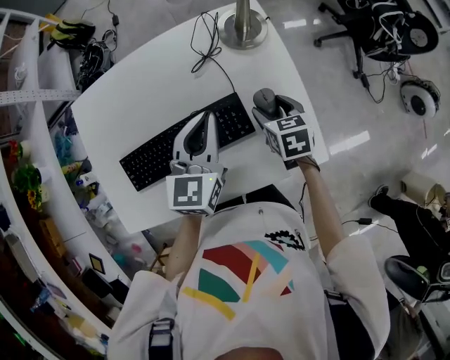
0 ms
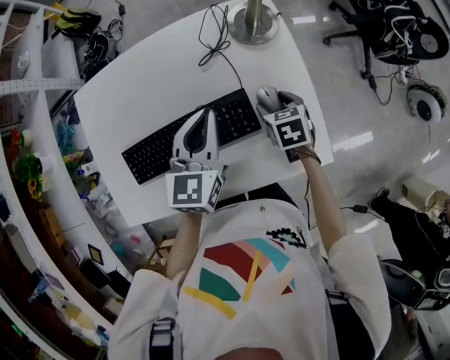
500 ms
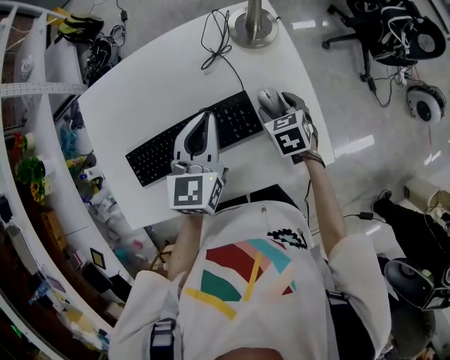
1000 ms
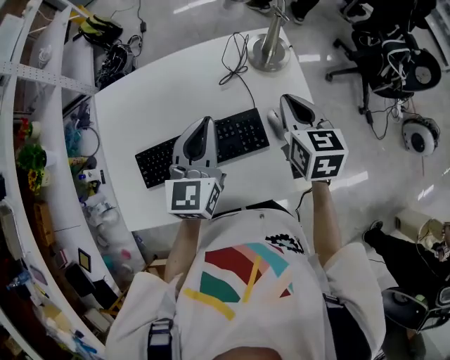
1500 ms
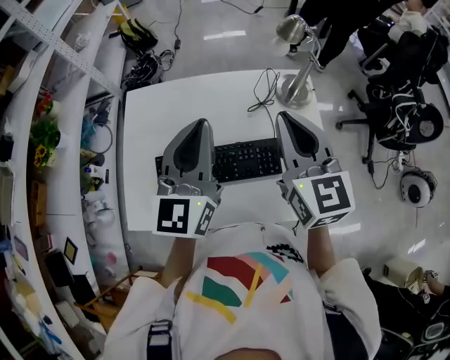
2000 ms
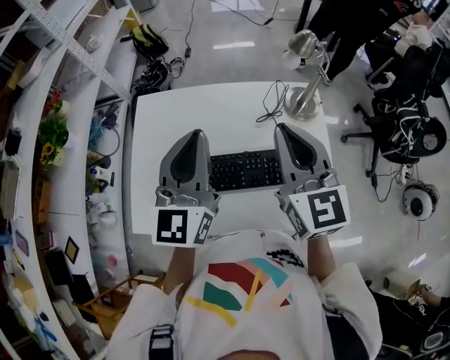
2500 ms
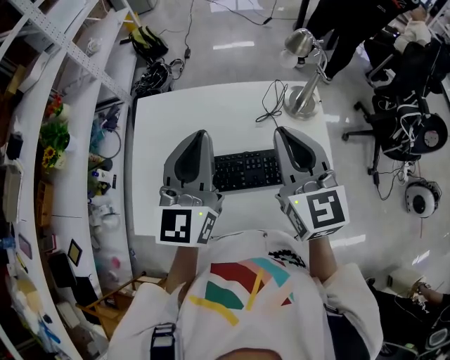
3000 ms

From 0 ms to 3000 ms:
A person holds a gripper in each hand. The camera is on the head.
From 0 ms to 1500 ms: The left gripper shifts approximately 5 cm to the left; the right gripper heads upward, covering about 15 cm, turns by roughly 20 degrees, and closes up.
From 1500 ms to 3000 ms: Both grippers travel together upward and to the left, about 20 cm. The right gripper changes its angle by approximately 30 degrees.

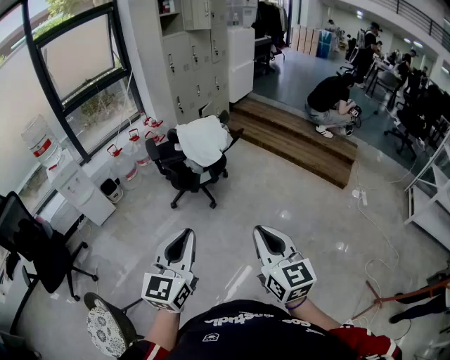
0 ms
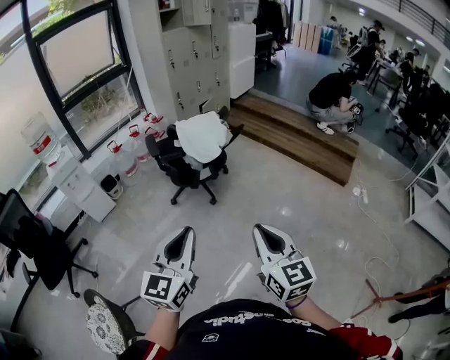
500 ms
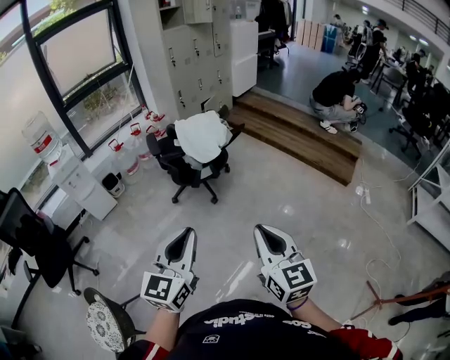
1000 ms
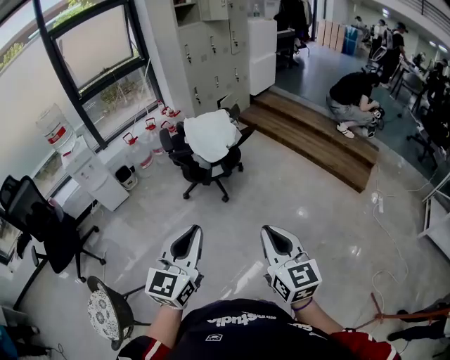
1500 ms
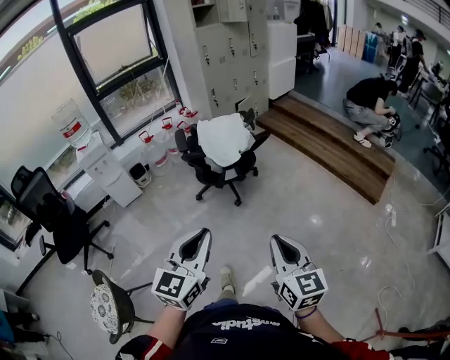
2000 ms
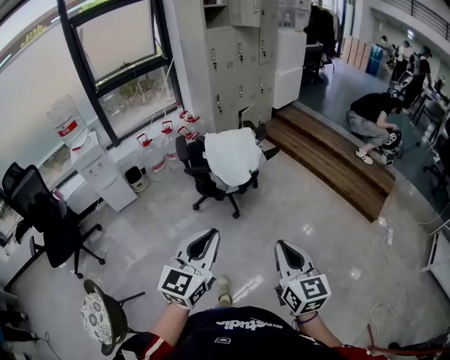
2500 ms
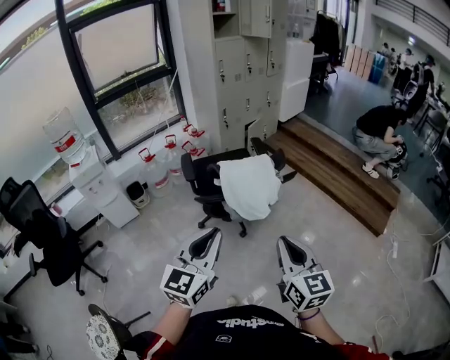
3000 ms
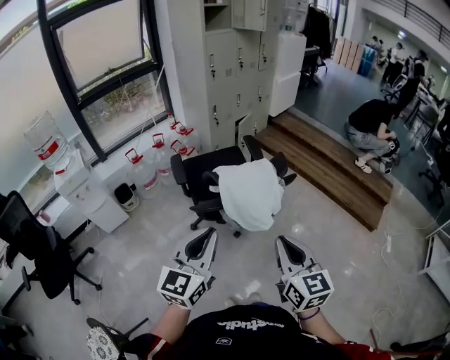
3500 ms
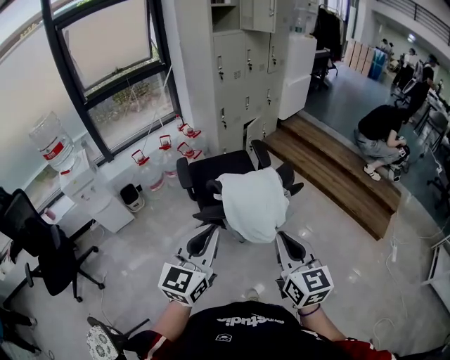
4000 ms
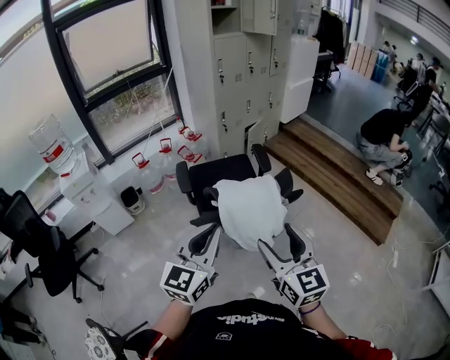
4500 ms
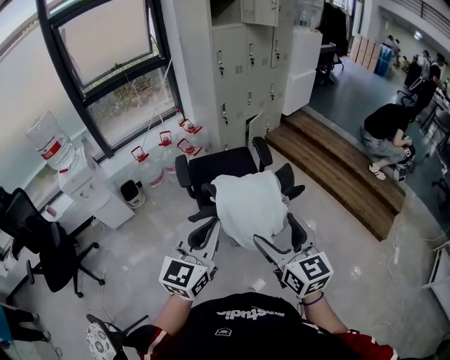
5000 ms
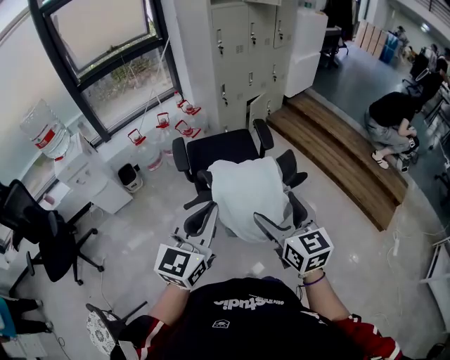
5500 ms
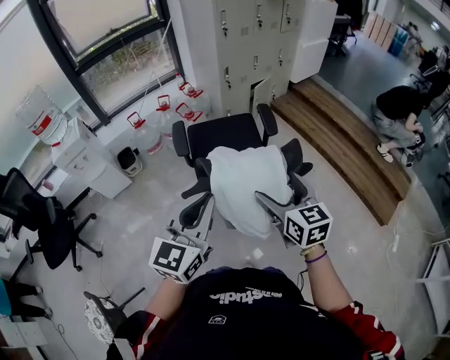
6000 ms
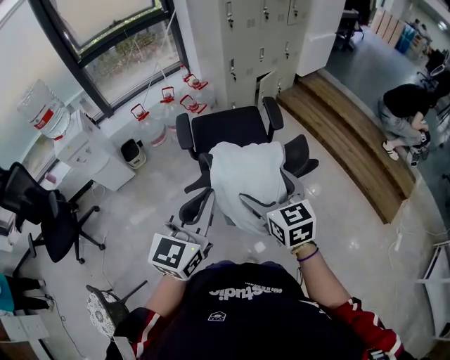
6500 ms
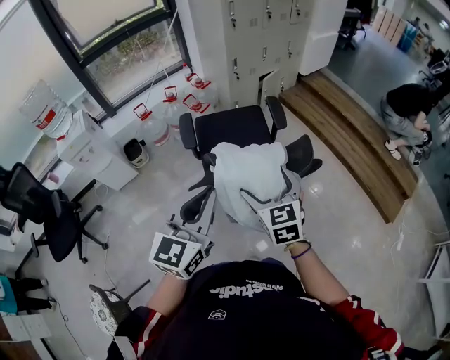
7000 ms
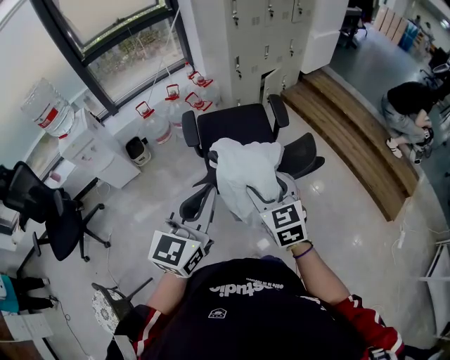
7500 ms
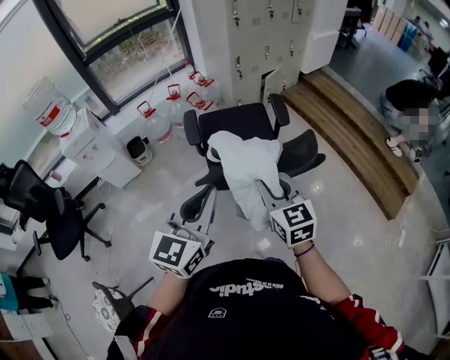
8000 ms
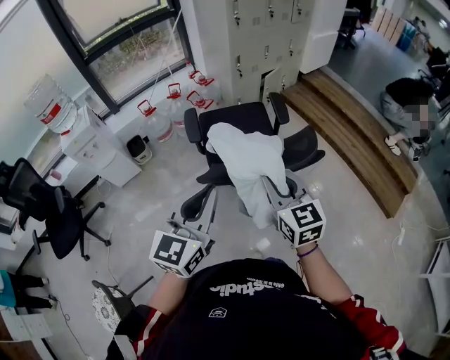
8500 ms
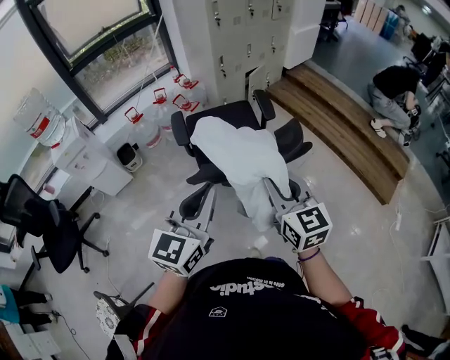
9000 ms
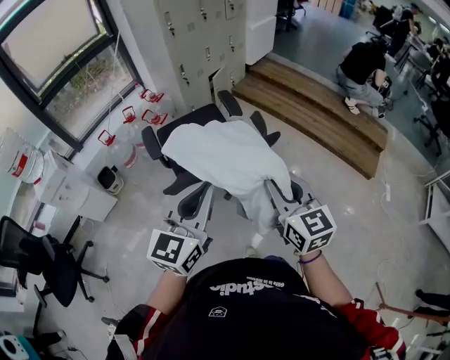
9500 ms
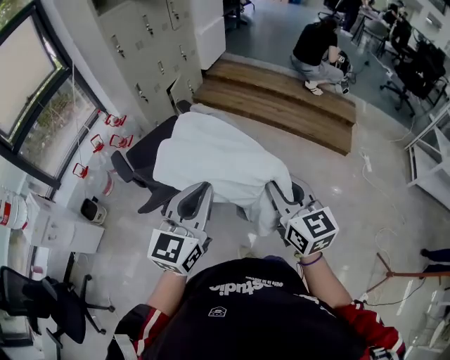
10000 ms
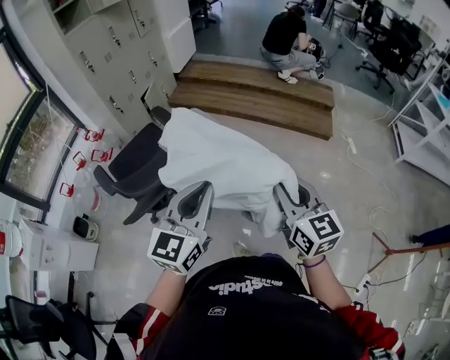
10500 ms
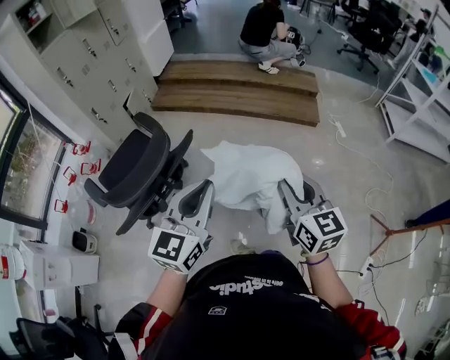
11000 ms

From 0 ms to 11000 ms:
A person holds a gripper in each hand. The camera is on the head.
From 0 ms to 2000 ms: The left gripper is displaced to the right by about 10 cm, while the right gripper shifts some 10 cm to the right and forward.
From 2000 ms to 3500 ms: The grippers both shift forward and to the left by roughly 35 cm.
From 3500 ms to 5500 ms: Both grippers move forward, some 15 cm. The right gripper opens its fingers.
From 5500 ms to 7500 ms: The right gripper shifts approximately 10 cm to the left, forward and downward.
From 7500 ms to 9000 ms: The right gripper shifts roughly 10 cm backward and upward, and closes.
From 9000 ms to 11000 ms: The right gripper ends up approximately 35 cm from where it was, and rotates about 40 degrees. The left gripper shifts by roughly 30 cm, and rotates some 40 degrees.

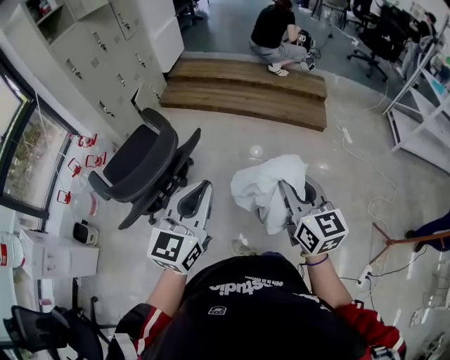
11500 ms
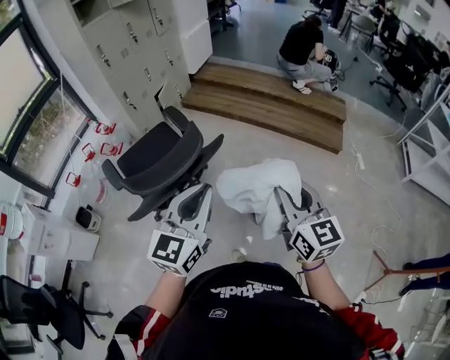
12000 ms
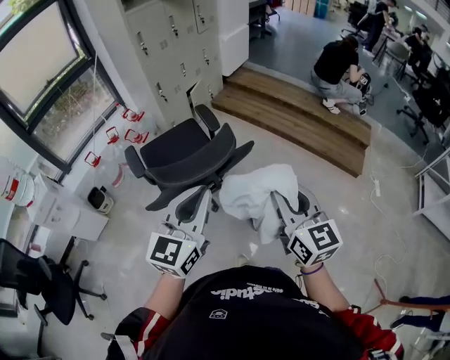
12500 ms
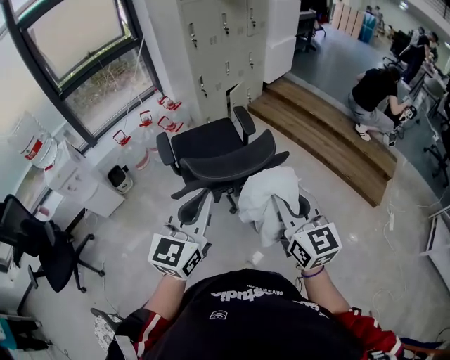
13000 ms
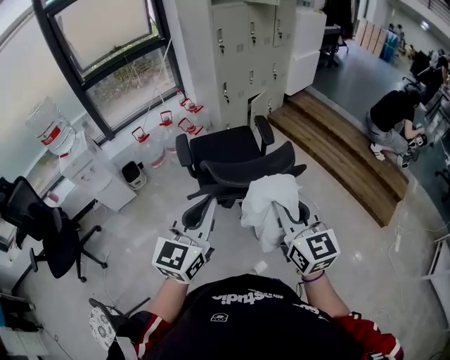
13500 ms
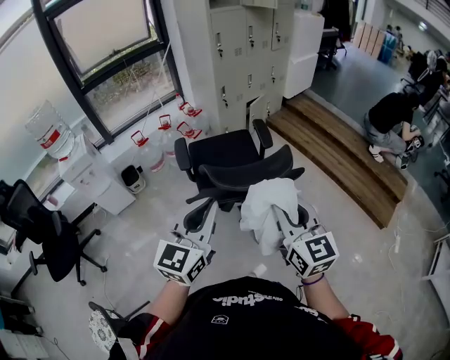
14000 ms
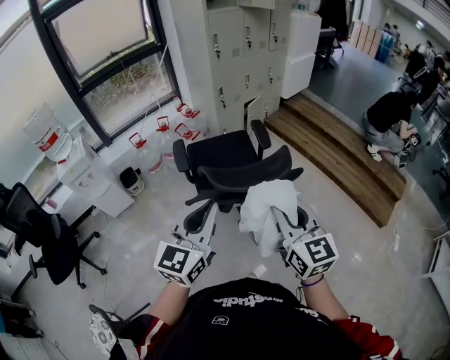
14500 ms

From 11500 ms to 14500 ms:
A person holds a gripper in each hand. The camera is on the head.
From 11500 ms to 13000 ms: The left gripper ends up roughly 20 cm from where it was, and swivels roughly 30 degrees, while the right gripper shifts by roughly 25 cm, and rotates some 30 degrees.
From 13000 ms to 14500 ms: There are only small adjustments of the grippers.

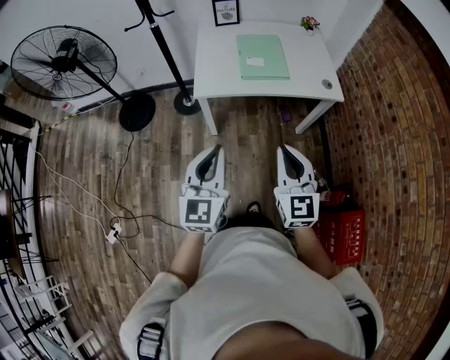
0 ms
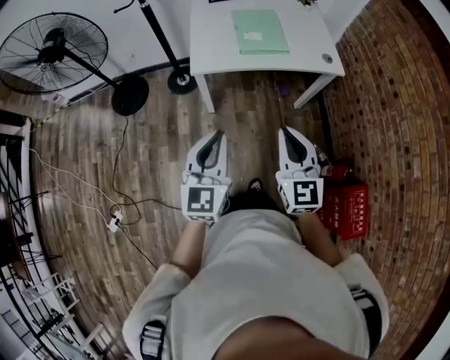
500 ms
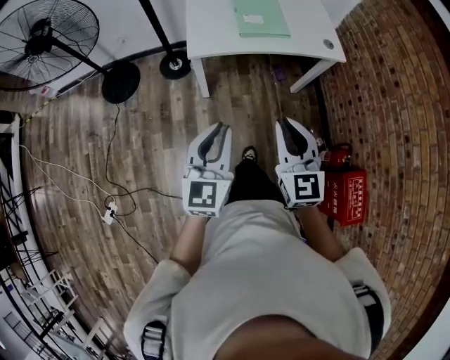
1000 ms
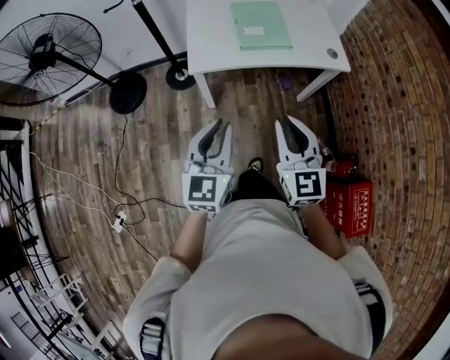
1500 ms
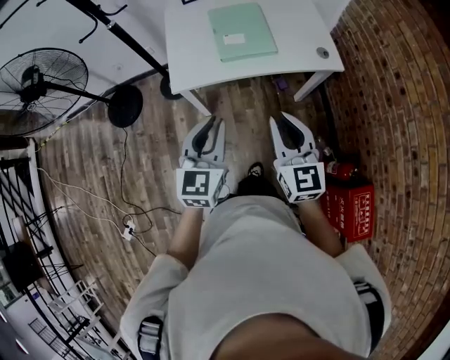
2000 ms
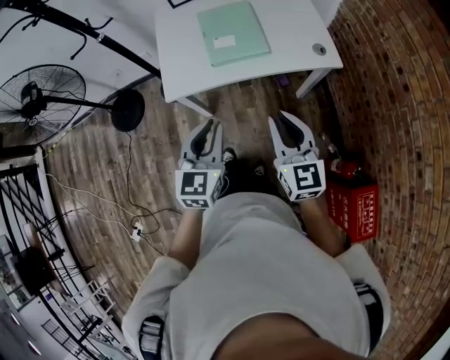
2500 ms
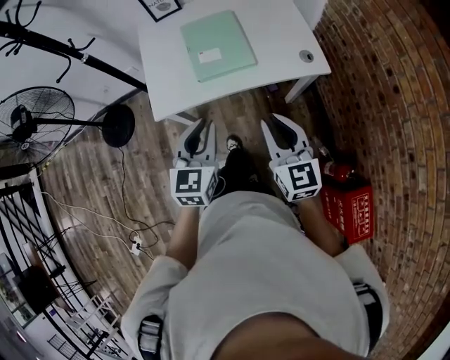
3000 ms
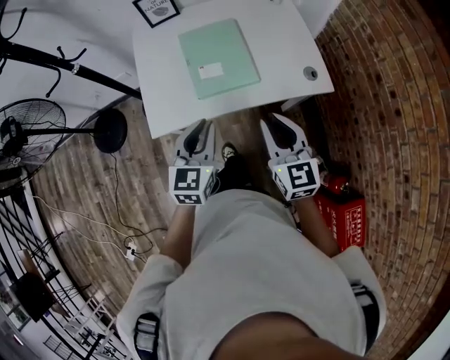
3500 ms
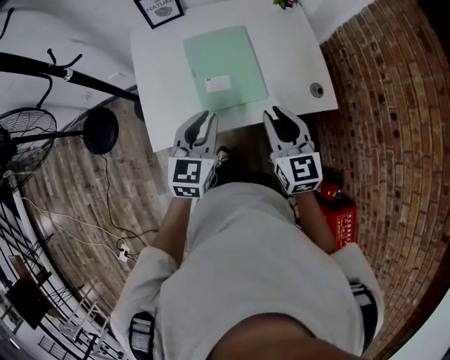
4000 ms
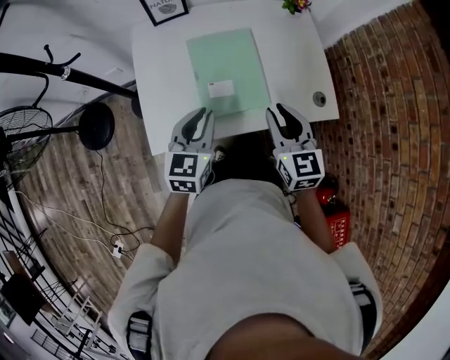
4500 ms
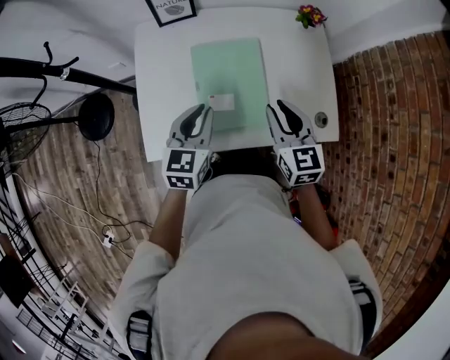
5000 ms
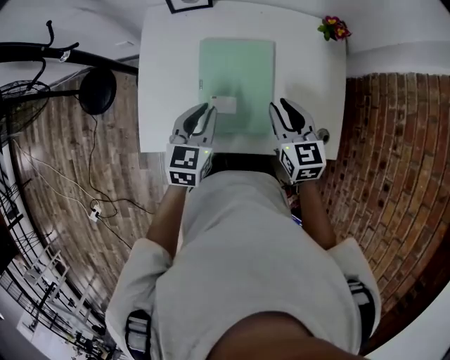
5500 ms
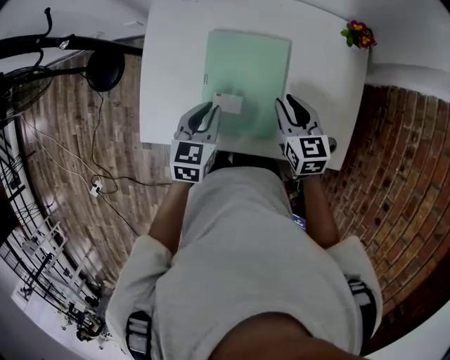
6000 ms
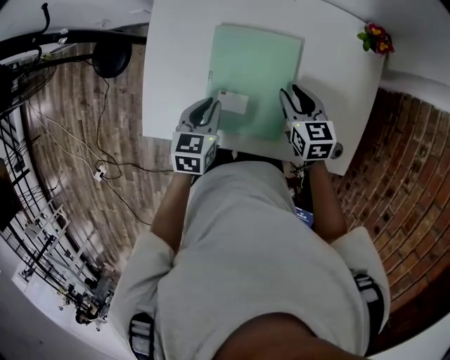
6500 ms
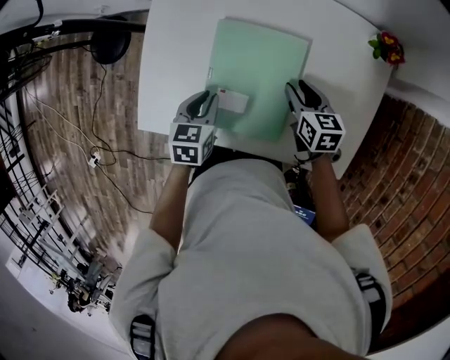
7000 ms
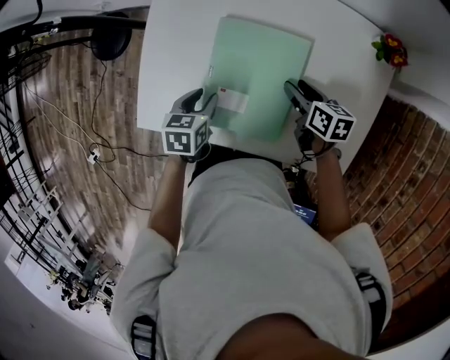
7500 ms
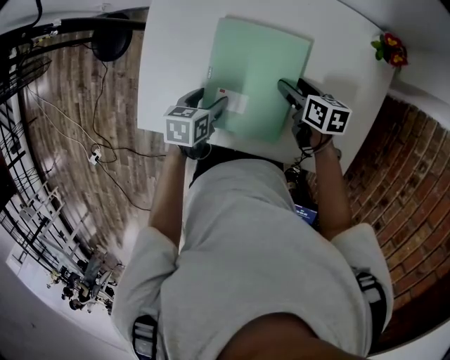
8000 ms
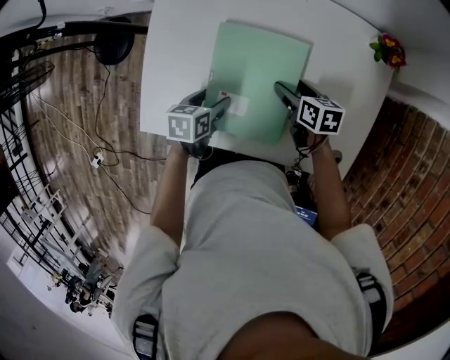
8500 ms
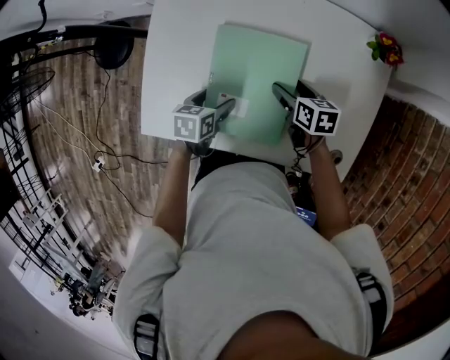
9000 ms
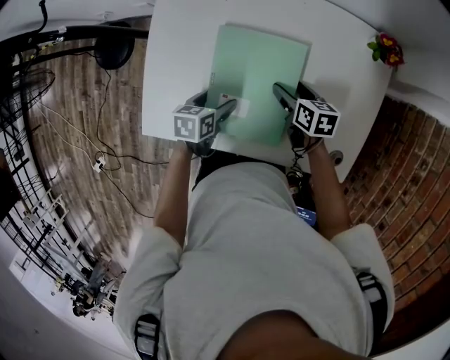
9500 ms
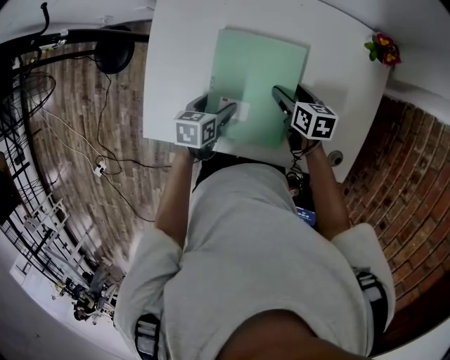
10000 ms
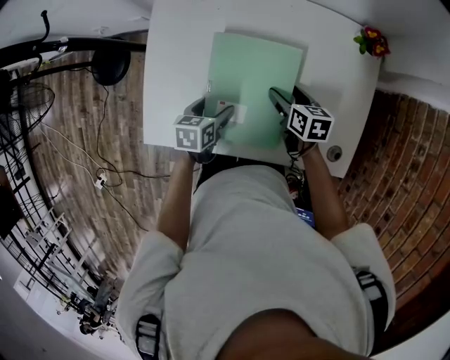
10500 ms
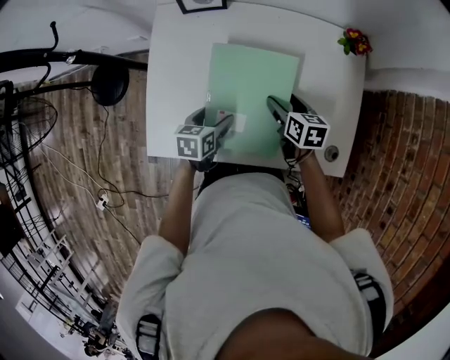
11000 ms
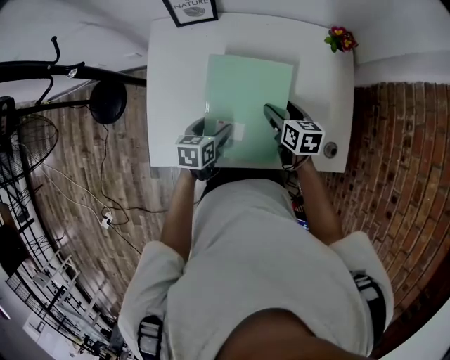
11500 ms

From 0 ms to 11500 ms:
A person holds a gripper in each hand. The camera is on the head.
From 0 ms to 2000 ms: Both grippers travel together forward, roughly 15 cm.
From 2000 ms to 4000 ms: Both grippers travel together forward, approximately 30 cm.
From 4000 ms to 6000 ms: Both grippers move forward and downward, approximately 25 cm. The left gripper swivels approximately 30 degrees, while the right gripper swivels some 30 degrees.
From 6000 ms to 7500 ms: The left gripper is displaced downward by about 10 cm, and turns by some 20 degrees, while the right gripper is displaced downward and forward by roughly 10 cm, and changes its angle by approximately 30 degrees.
From 7500 ms to 9500 ms: The left gripper opens up. The right gripper opens its fingers.
From 9500 ms to 11500 ms: The right gripper moves upward and backward, approximately 10 cm, while the left gripper is displaced upward by approximately 5 cm.
